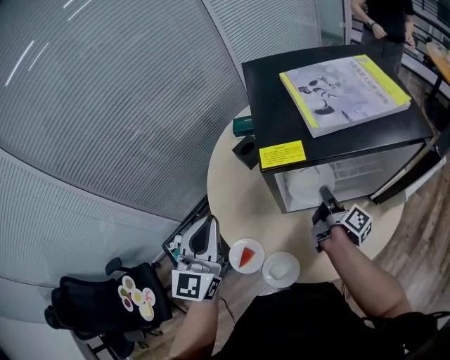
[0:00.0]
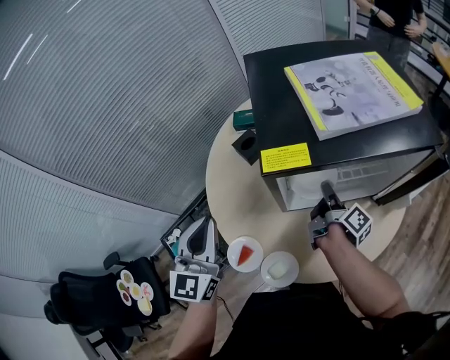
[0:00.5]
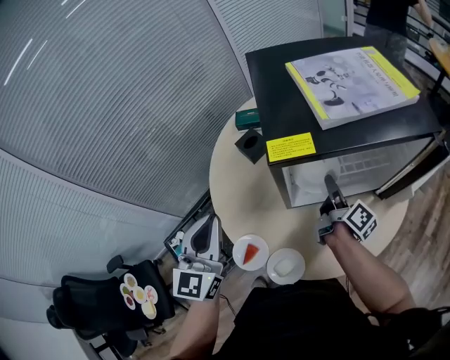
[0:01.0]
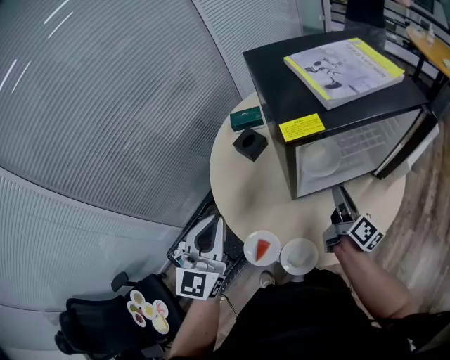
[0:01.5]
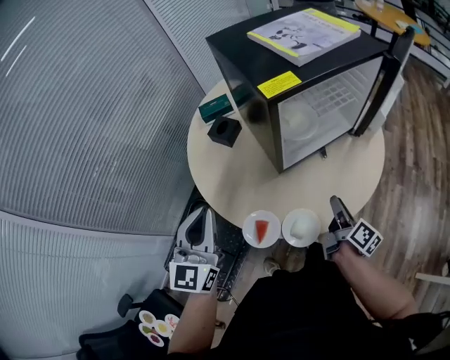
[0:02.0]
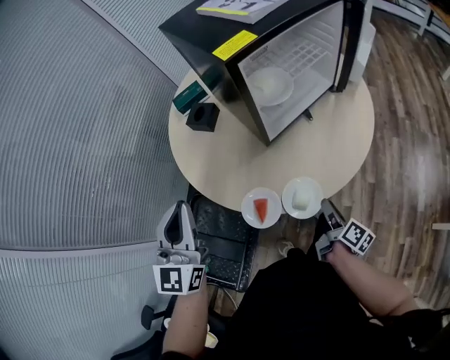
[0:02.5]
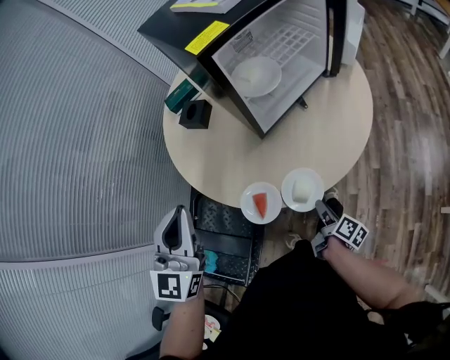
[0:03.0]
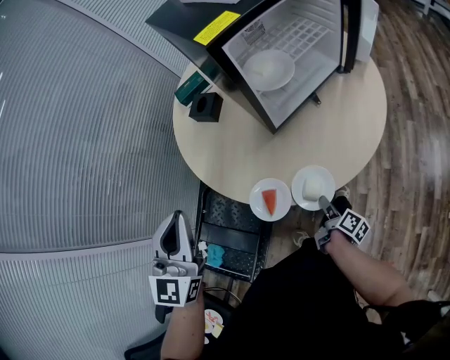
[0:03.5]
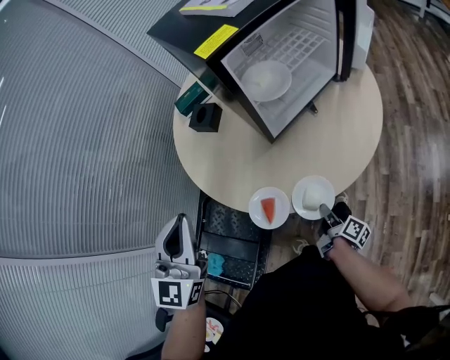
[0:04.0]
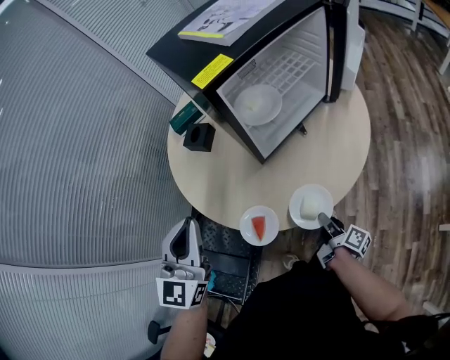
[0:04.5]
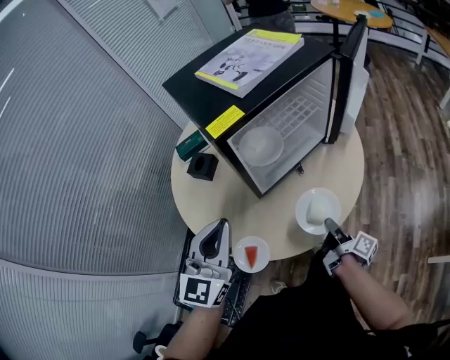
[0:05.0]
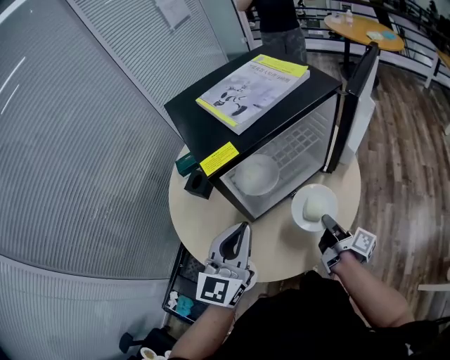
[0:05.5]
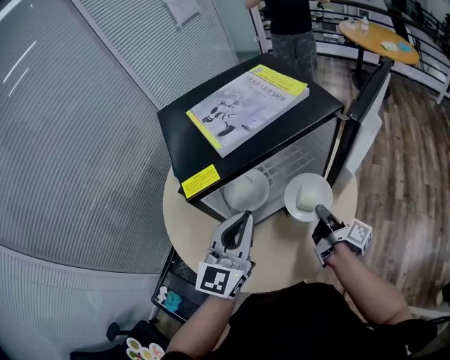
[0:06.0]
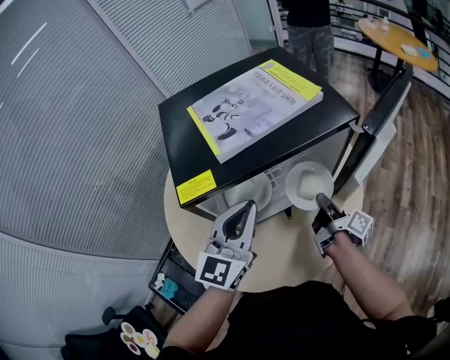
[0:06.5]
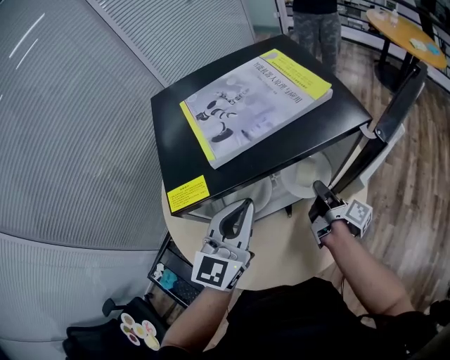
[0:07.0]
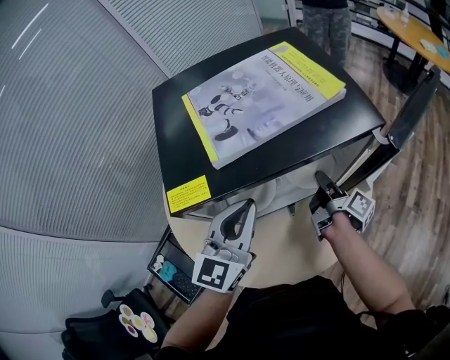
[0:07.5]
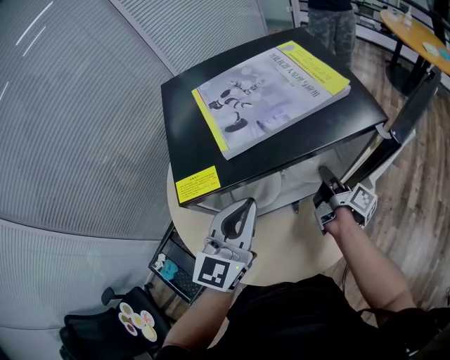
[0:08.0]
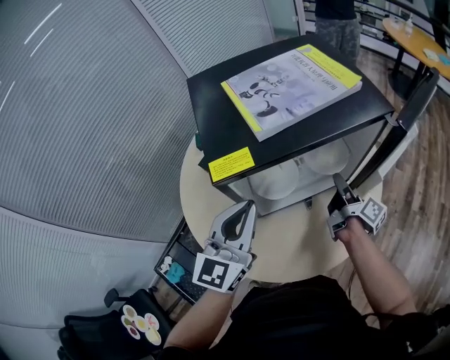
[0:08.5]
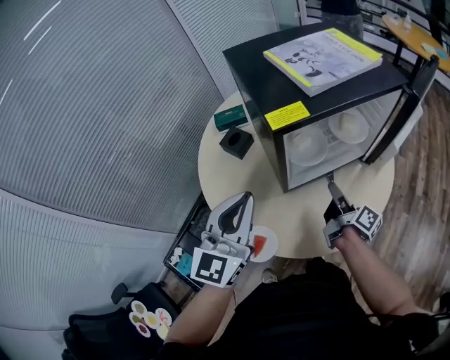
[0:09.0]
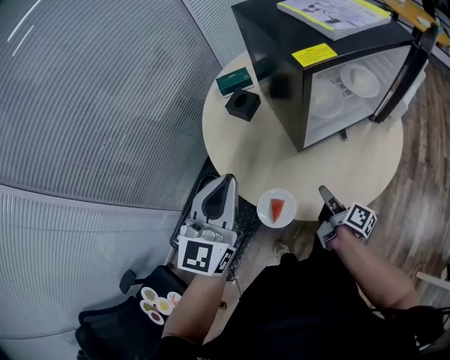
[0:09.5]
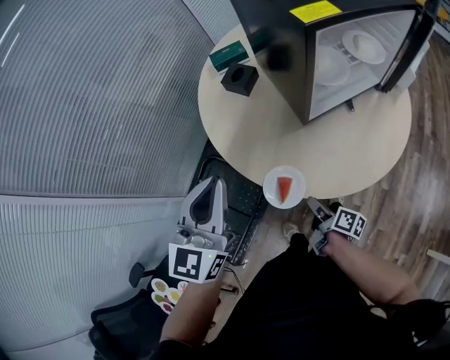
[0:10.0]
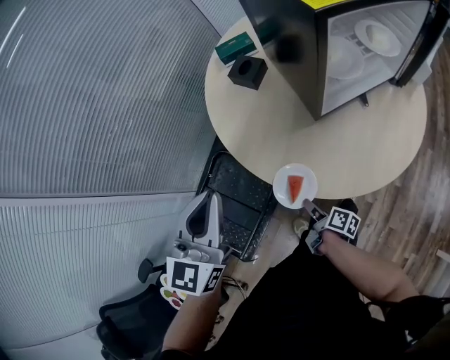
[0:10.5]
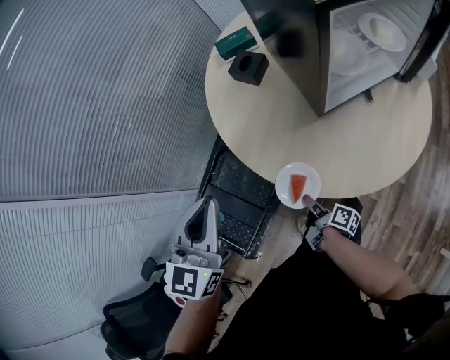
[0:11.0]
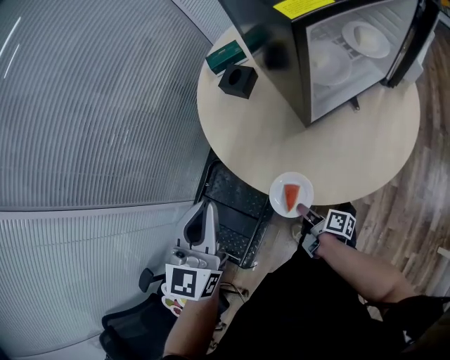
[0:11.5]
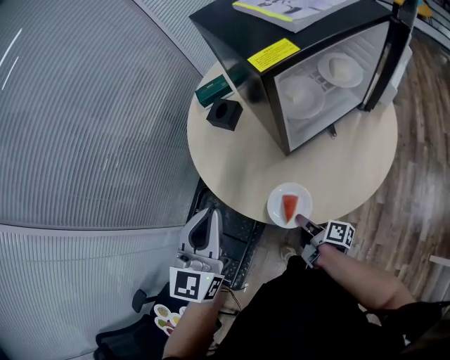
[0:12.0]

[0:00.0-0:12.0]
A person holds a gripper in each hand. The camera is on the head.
0:00.0 to 0:02.0: The left gripper goes some 10 cm to the left, and changes its angle by approximately 20 degrees. The right gripper heads backward, covering approximately 25 cm, changes its angle by roughly 30 degrees, and opens its fingers.
0:02.0 to 0:04.0: The right gripper heads downward and backward, covering some 25 cm, turns by about 20 degrees, and closes up.
0:04.0 to 0:06.0: The left gripper goes approximately 35 cm to the right and forward. Meanwhile the right gripper heads forward, upward and to the right, covering approximately 40 cm.
0:06.0 to 0:08.0: The left gripper heads forward, covering roughly 5 cm. Meanwhile the right gripper moves forward, roughly 15 cm.
0:08.0 to 0:10.0: The left gripper moves to the left and backward, some 35 cm. Meanwhile the right gripper heads backward, to the left and downward, covering some 50 cm, changes its angle by some 20 degrees, and opens.
0:10.0 to 0:12.0: The right gripper travels to the left and back again, approximately 5 cm each way, and closes up.

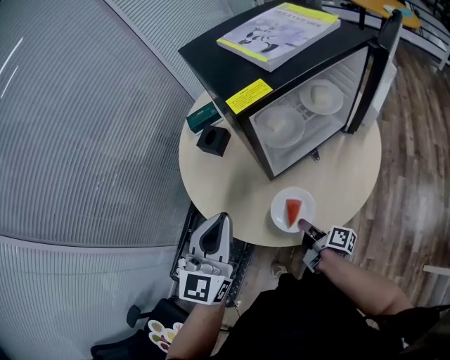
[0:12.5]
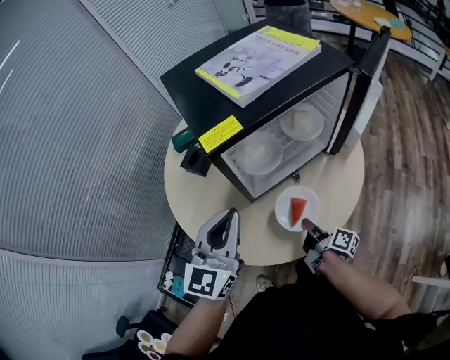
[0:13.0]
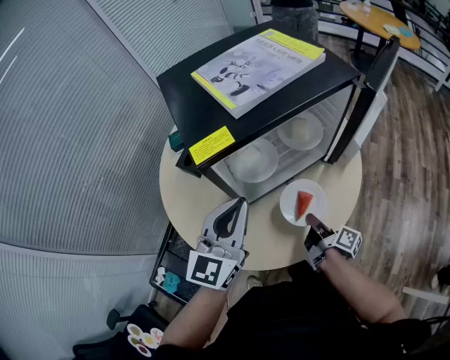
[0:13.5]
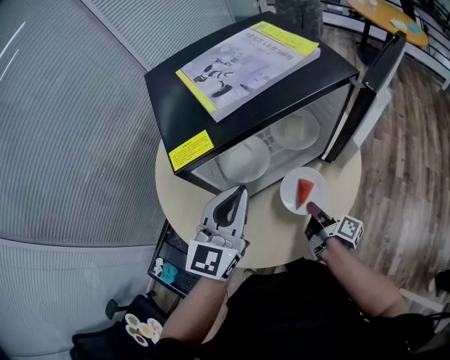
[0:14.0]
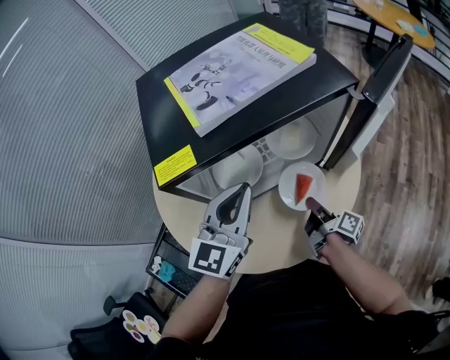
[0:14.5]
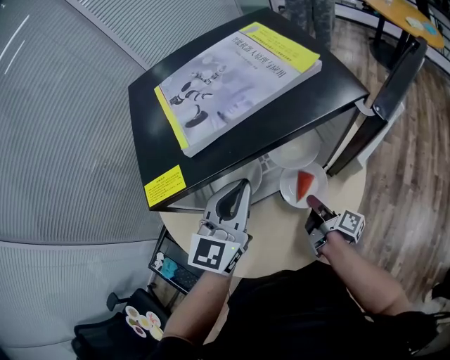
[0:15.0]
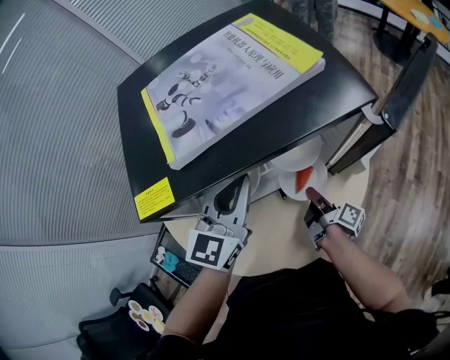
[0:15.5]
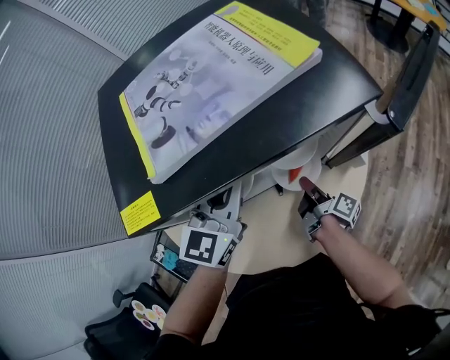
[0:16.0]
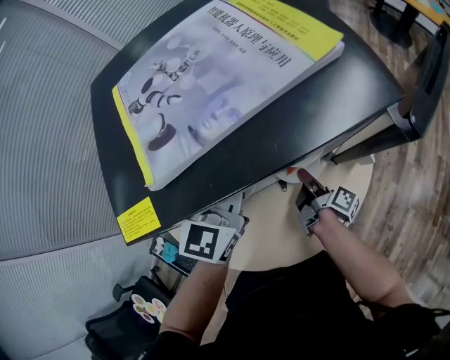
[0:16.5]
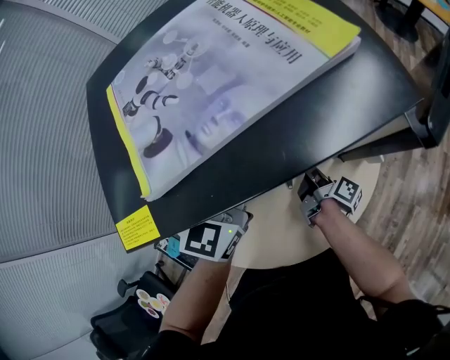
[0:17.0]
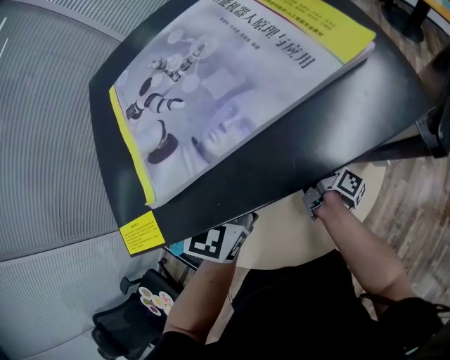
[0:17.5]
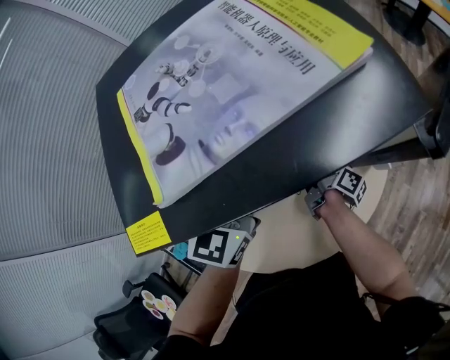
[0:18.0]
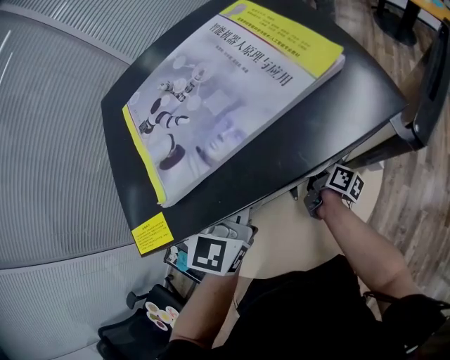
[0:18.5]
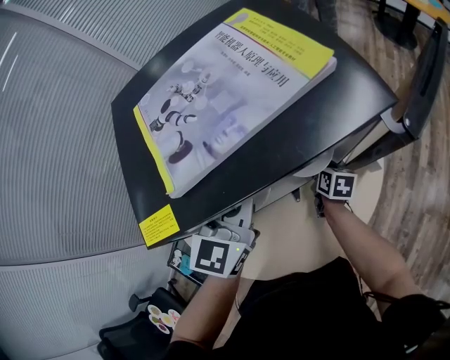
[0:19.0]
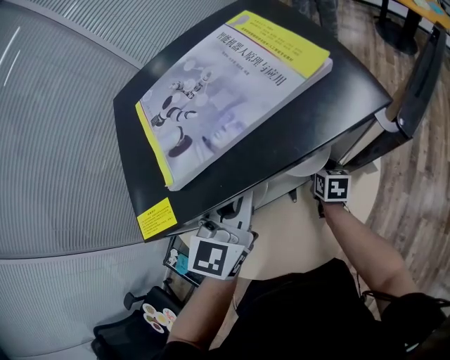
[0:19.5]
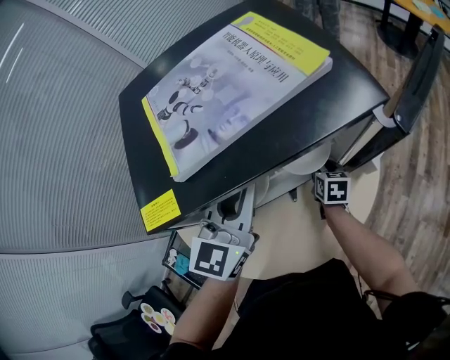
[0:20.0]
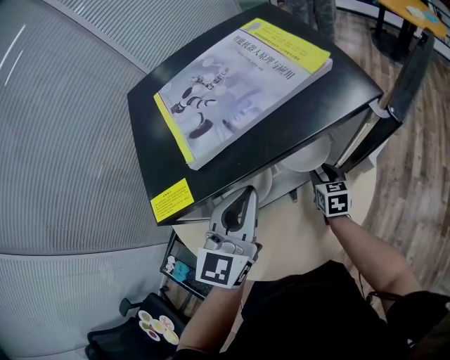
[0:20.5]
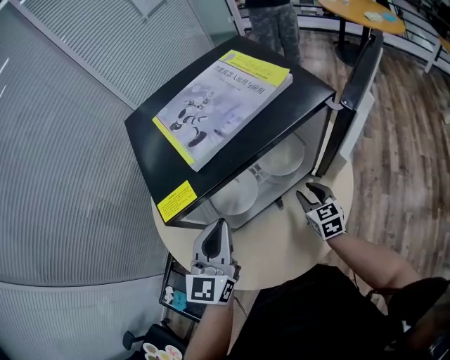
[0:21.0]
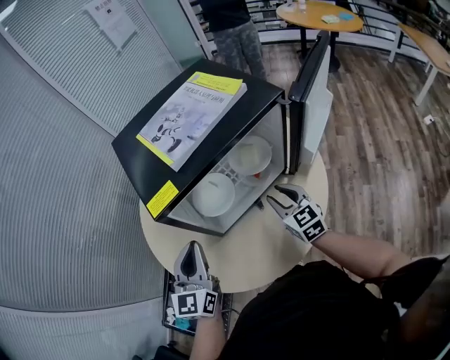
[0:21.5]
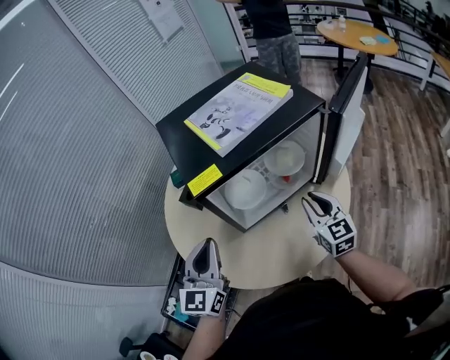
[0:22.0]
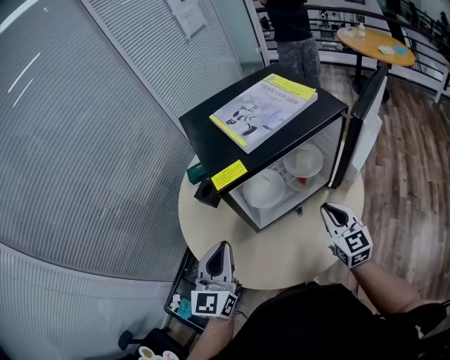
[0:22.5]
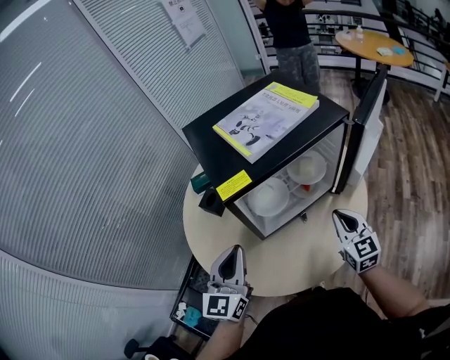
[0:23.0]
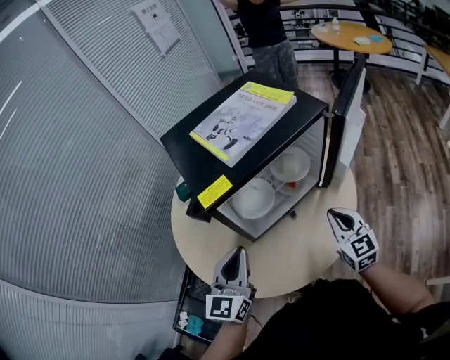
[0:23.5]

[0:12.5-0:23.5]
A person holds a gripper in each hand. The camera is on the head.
0:12.5 to 0:14.5: Both grippers travel together to the right and forward, roughly 25 cm.
0:14.5 to 0:16.0: Both grippers travel together forward, some 10 cm.
0:16.0 to 0:18.0: The right gripper shifts about 10 cm forward.
0:18.0 to 0:20.0: The right gripper rolls counterclockwise, seen from behind, by about 60 degrees, and opens its fingers; the left gripper moves about 5 cm.
0:20.0 to 0:21.5: The right gripper moves upward and backward, roughly 25 cm, and swivels approximately 30 degrees, while the left gripper moves backward and to the left, about 20 cm.
0:21.5 to 0:23.5: The right gripper is displaced backward and upward by roughly 10 cm, and closes up.

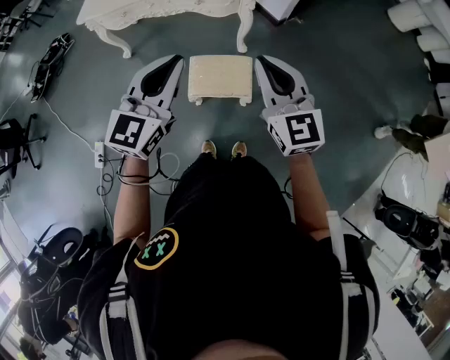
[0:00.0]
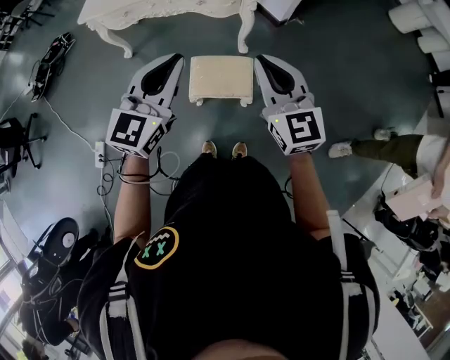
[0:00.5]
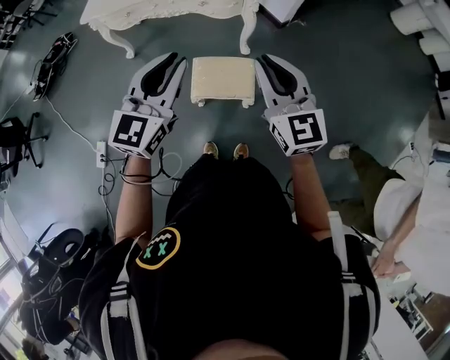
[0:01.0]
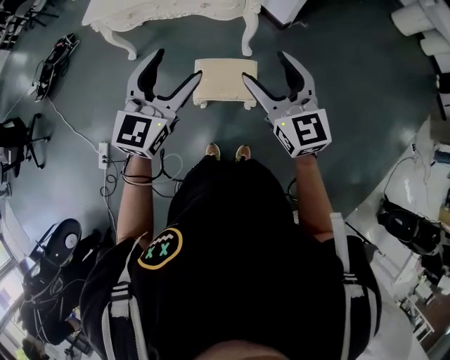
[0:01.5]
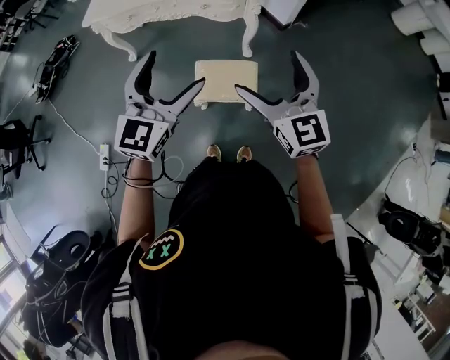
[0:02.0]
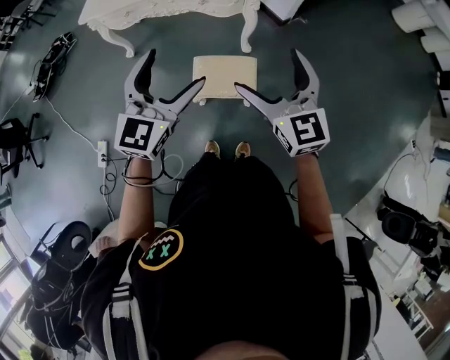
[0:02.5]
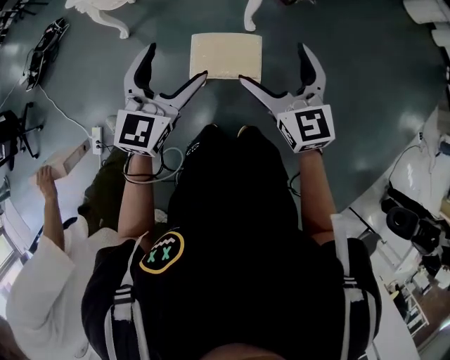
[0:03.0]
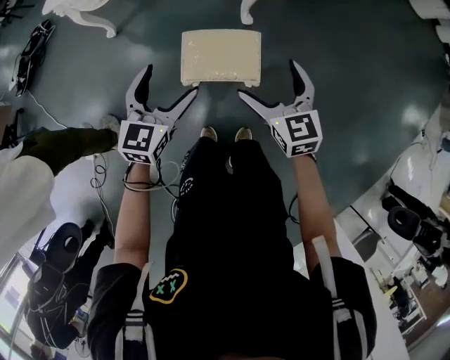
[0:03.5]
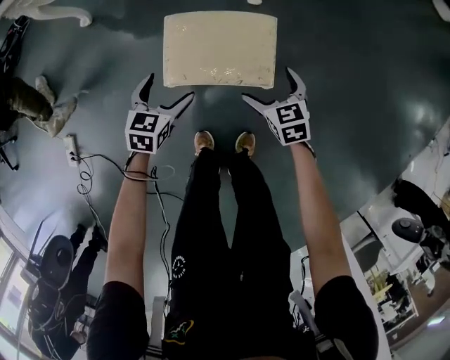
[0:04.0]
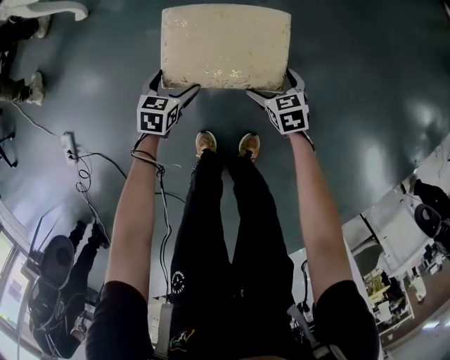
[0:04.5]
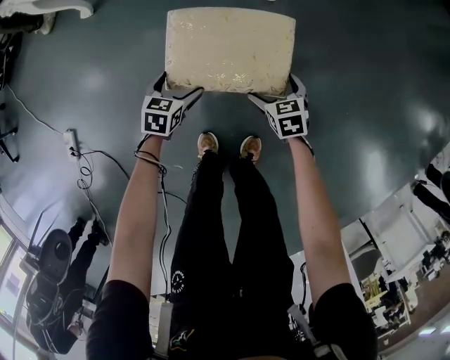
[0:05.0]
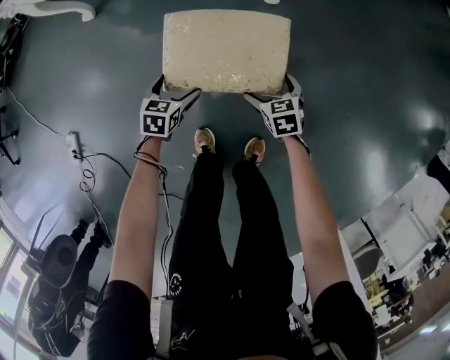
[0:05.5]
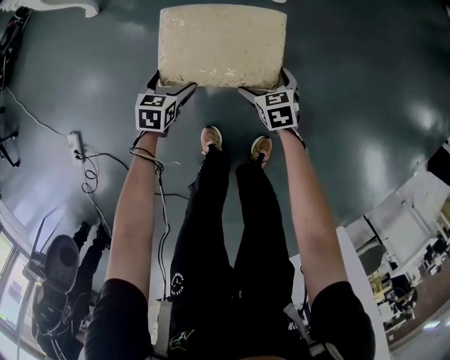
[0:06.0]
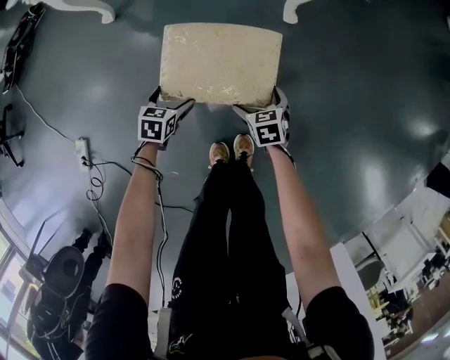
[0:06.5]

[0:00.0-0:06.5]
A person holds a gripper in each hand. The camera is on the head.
0:00.0 to 0:02.0: The left gripper opens. The right gripper opens.
0:02.0 to 0:04.5: The two grippers go about 80 cm downward. The right gripper angles its fingers downward, by about 50 degrees, while the left gripper points its fingers roughly 50 degrees further downward.
0:04.5 to 0:06.5: Both grippers travel together to the left, approximately 15 cm.
